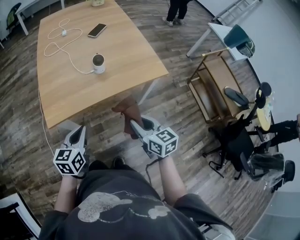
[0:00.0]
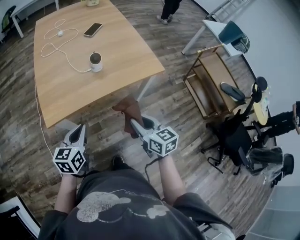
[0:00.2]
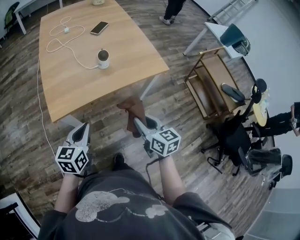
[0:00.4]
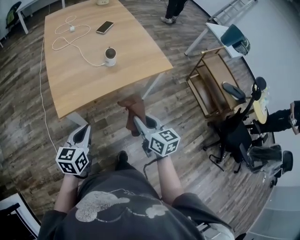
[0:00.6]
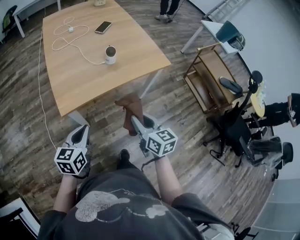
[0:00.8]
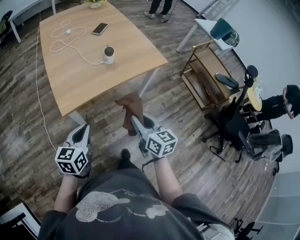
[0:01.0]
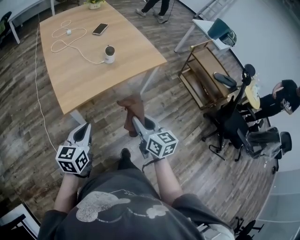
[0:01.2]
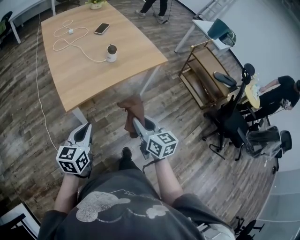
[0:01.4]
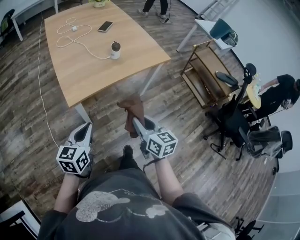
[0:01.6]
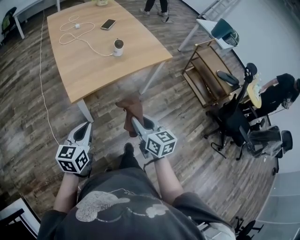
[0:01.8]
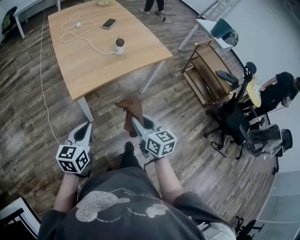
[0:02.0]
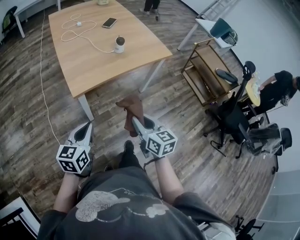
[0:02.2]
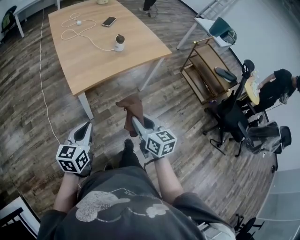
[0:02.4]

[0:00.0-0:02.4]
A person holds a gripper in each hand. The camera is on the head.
0:00.0 to 0:01.2: The grippers both shift backward and to the left by about 15 cm.
0:01.2 to 0:02.4: The left gripper shifts about 10 cm backward; the right gripper moves backward and to the left, some 10 cm.

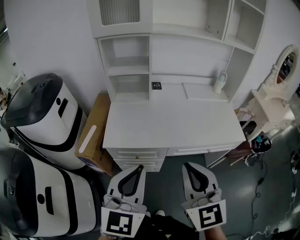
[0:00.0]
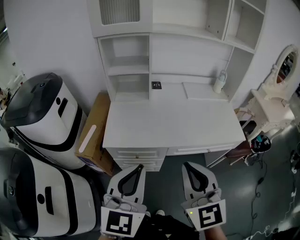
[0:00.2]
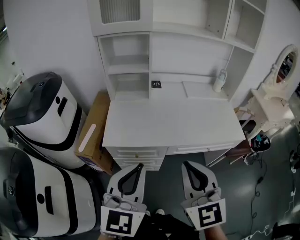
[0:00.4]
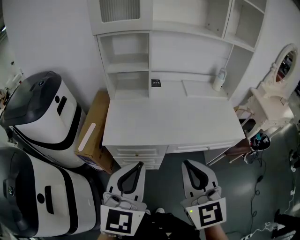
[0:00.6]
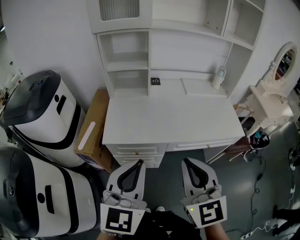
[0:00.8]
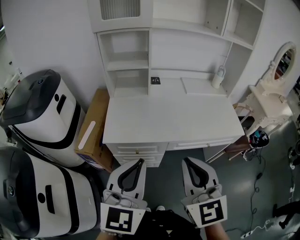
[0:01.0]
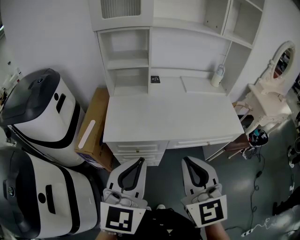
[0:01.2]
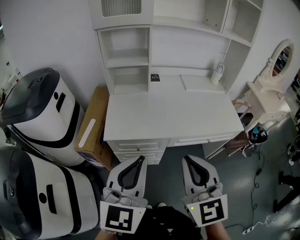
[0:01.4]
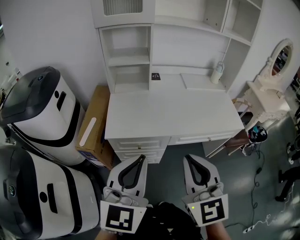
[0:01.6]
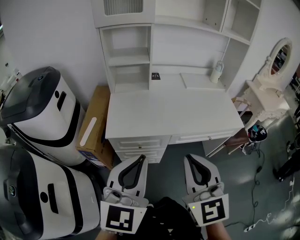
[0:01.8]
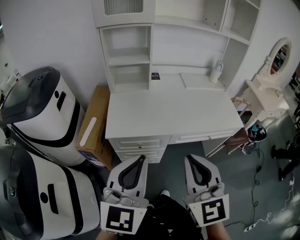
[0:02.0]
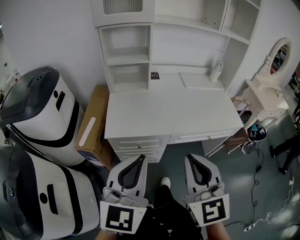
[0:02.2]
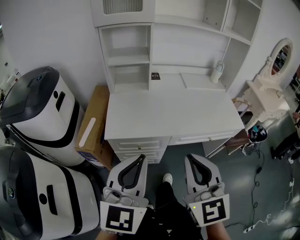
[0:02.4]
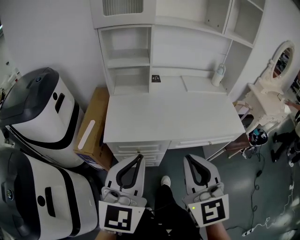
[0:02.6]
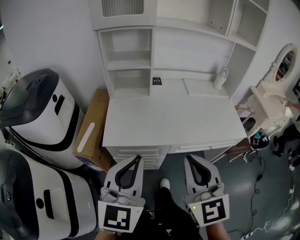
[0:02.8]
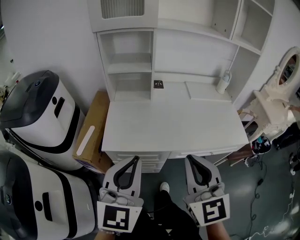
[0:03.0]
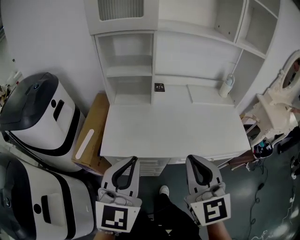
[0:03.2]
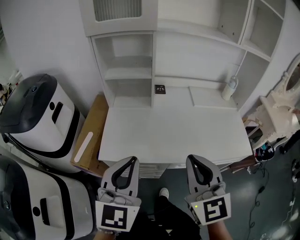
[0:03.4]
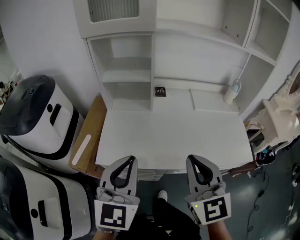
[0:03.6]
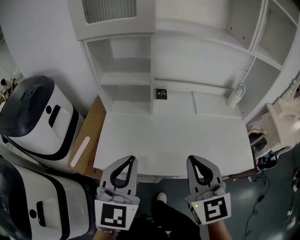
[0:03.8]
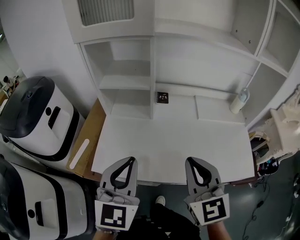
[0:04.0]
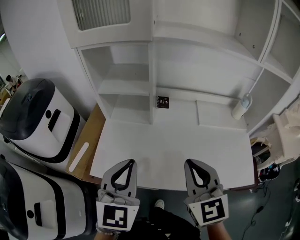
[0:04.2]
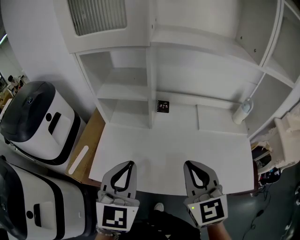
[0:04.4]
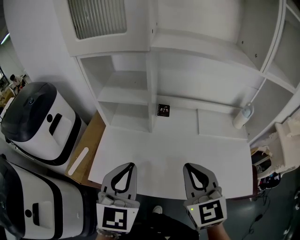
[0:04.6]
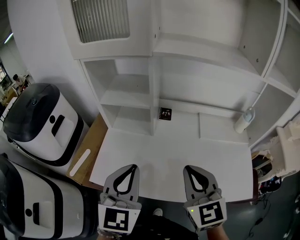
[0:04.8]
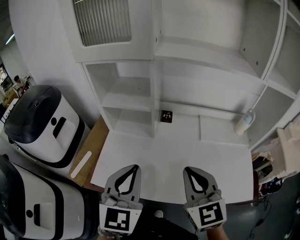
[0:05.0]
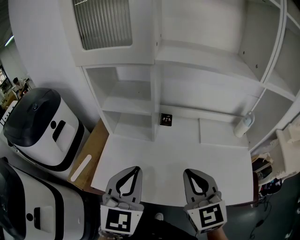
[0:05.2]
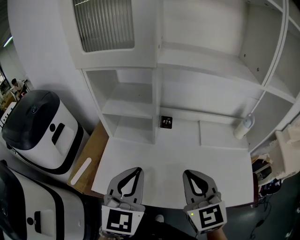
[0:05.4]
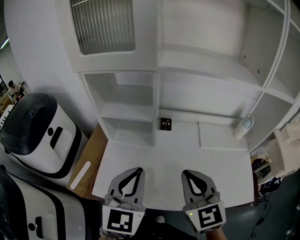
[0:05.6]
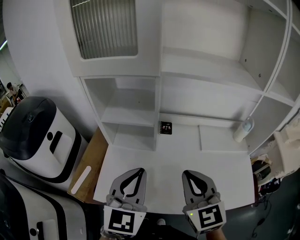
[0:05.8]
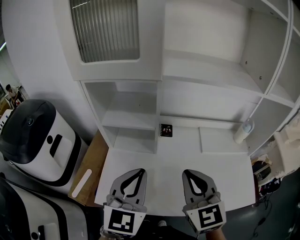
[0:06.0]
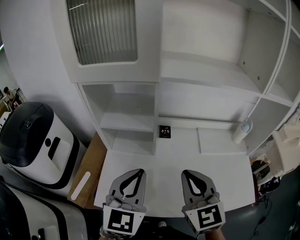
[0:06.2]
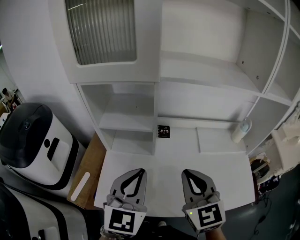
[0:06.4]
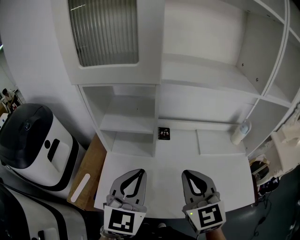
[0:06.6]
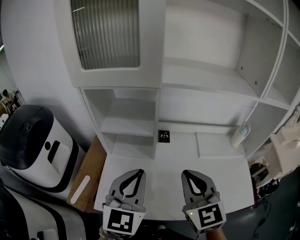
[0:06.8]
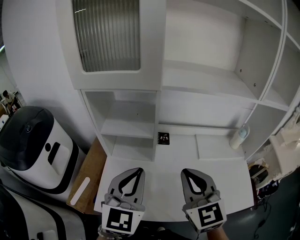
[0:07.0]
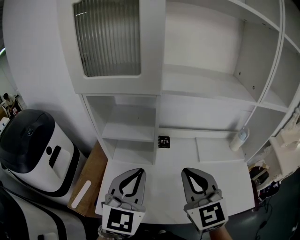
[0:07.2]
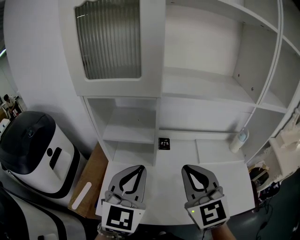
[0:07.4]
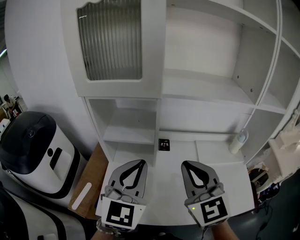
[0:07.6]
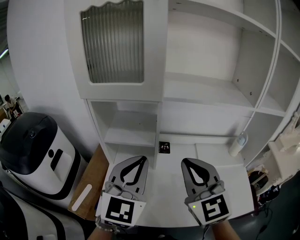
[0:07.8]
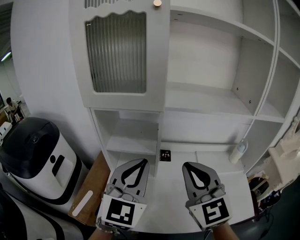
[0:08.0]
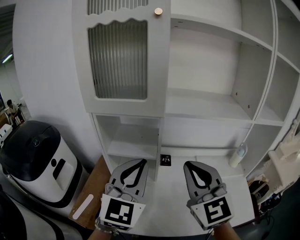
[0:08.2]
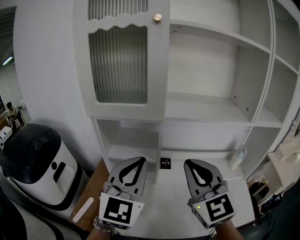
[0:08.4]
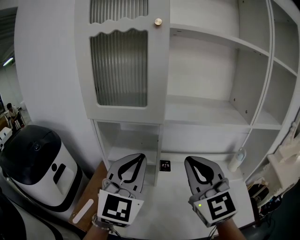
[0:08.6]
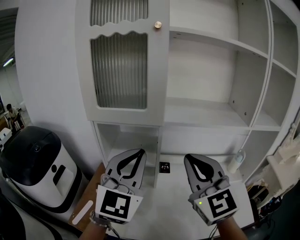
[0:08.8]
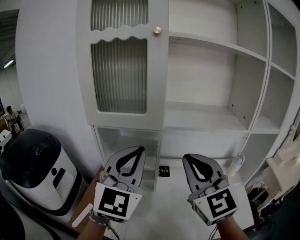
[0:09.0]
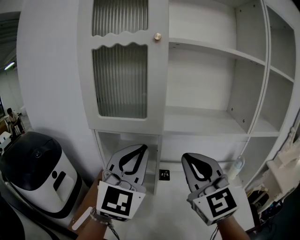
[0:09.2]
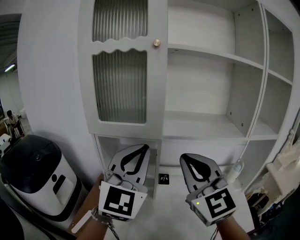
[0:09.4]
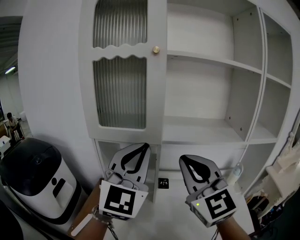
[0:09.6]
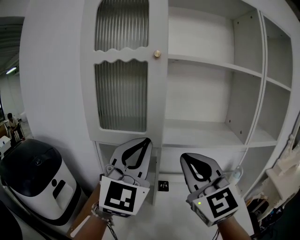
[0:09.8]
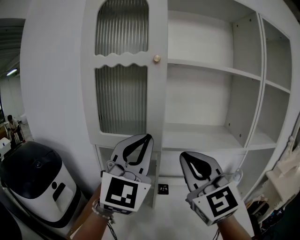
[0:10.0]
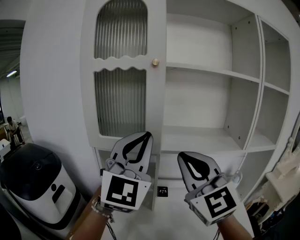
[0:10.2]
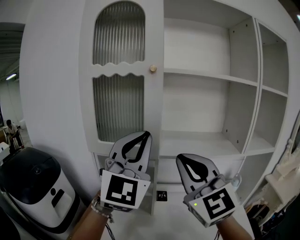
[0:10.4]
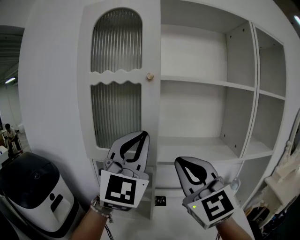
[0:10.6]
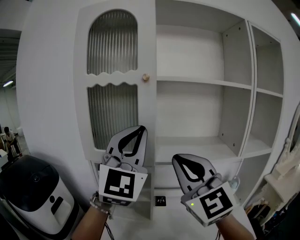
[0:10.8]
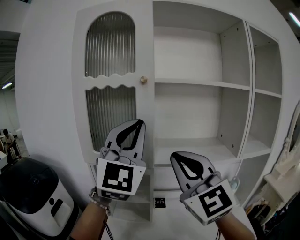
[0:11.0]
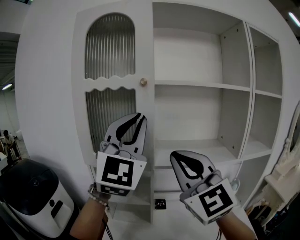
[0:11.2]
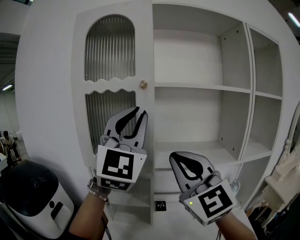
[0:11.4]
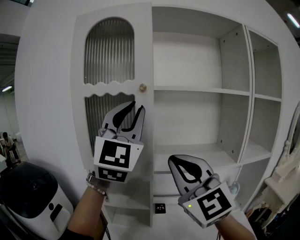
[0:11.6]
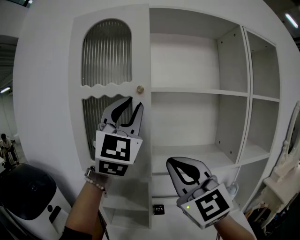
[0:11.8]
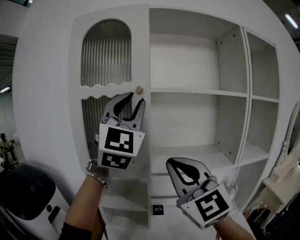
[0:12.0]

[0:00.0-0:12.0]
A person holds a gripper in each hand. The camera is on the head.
0:00.0 to 0:01.6: The grippers move only a little.
0:01.6 to 0:03.0: The grippers both shift forward by about 10 cm.
0:03.0 to 0:04.4: The left gripper travels forward by approximately 20 cm. The right gripper is displaced forward and to the right by approximately 25 cm.
0:04.4 to 0:06.0: Both grippers move forward, about 5 cm.
0:06.0 to 0:07.6: The grippers both shift upward by roughly 5 cm.
0:07.6 to 0:09.0: The two grippers go about 10 cm upward.
0:09.0 to 0:10.4: Both grippers move upward, some 10 cm.
0:10.4 to 0:12.0: The left gripper travels upward and forward by approximately 15 cm, and opens.

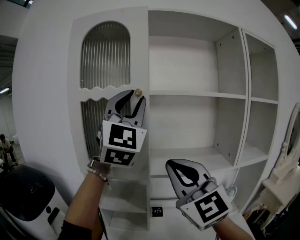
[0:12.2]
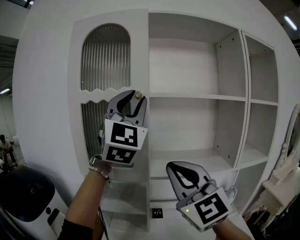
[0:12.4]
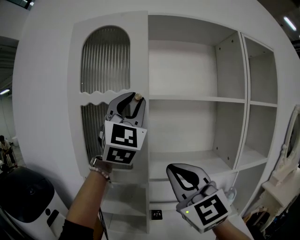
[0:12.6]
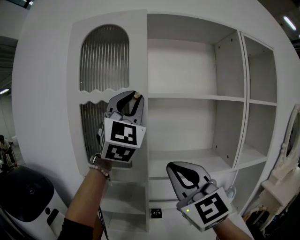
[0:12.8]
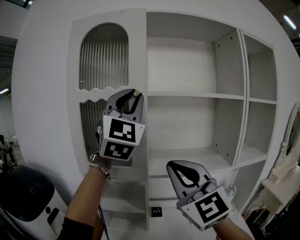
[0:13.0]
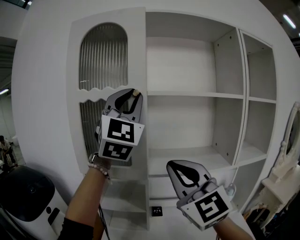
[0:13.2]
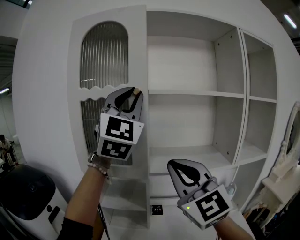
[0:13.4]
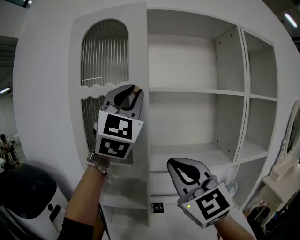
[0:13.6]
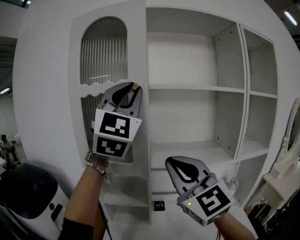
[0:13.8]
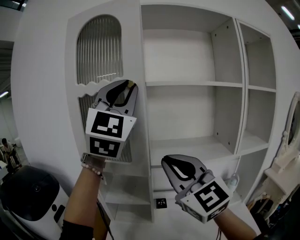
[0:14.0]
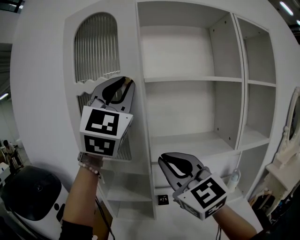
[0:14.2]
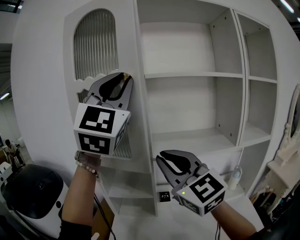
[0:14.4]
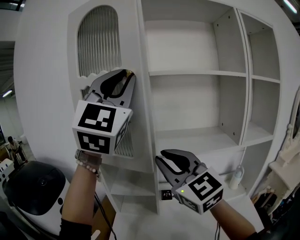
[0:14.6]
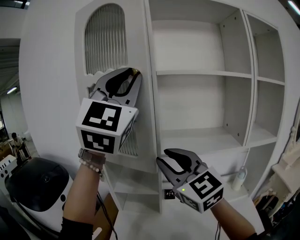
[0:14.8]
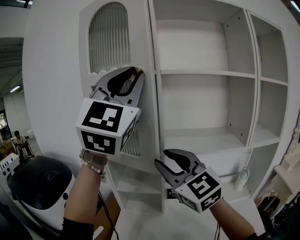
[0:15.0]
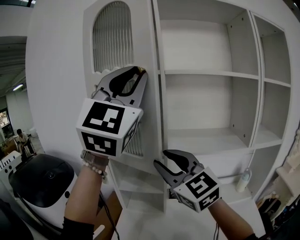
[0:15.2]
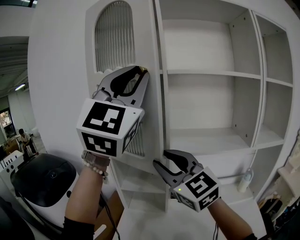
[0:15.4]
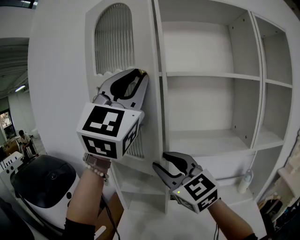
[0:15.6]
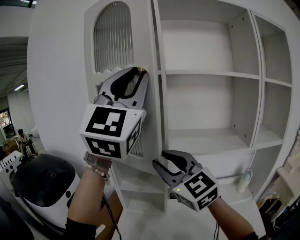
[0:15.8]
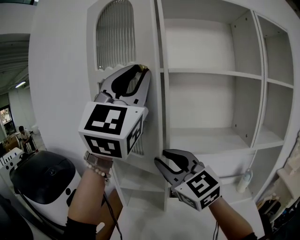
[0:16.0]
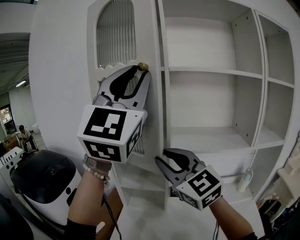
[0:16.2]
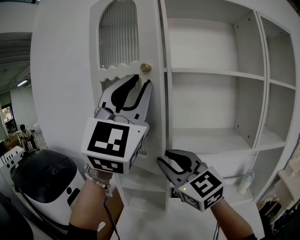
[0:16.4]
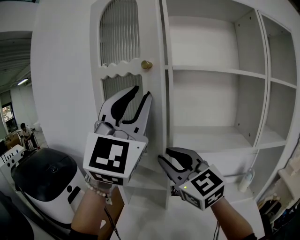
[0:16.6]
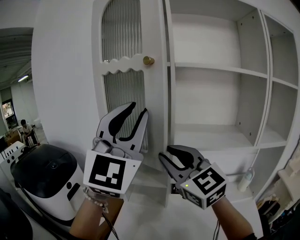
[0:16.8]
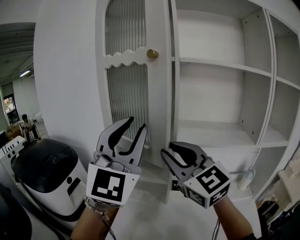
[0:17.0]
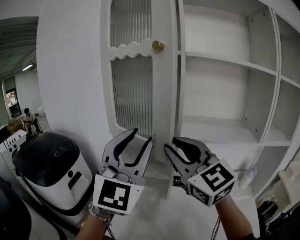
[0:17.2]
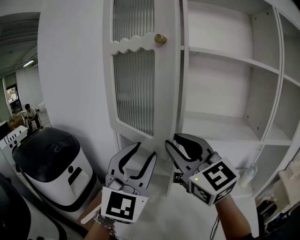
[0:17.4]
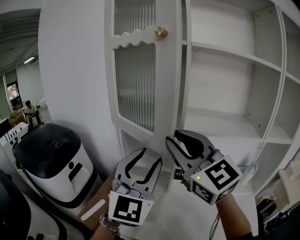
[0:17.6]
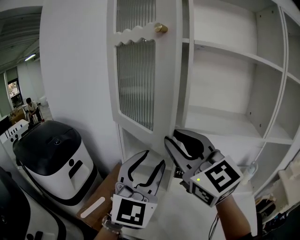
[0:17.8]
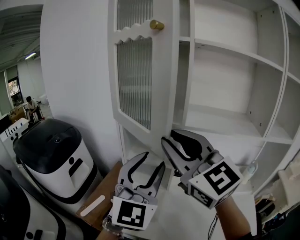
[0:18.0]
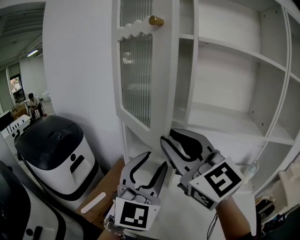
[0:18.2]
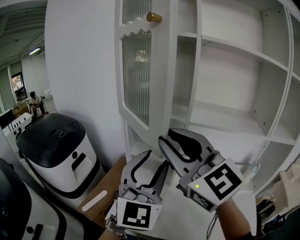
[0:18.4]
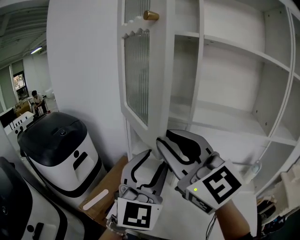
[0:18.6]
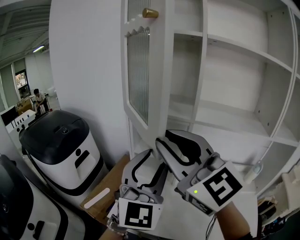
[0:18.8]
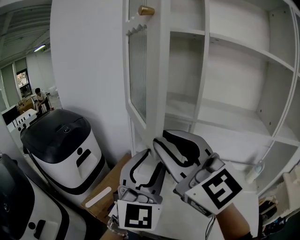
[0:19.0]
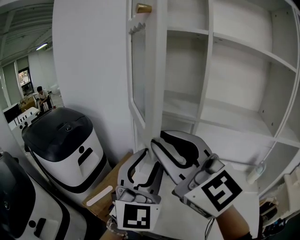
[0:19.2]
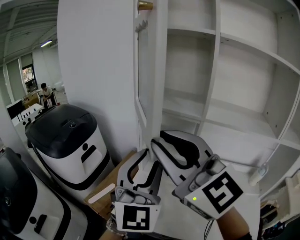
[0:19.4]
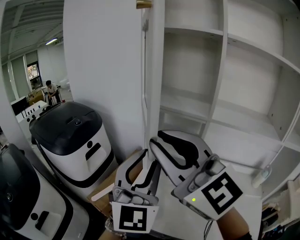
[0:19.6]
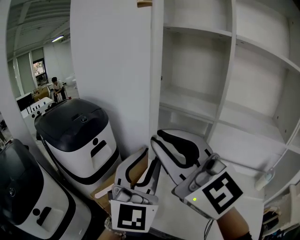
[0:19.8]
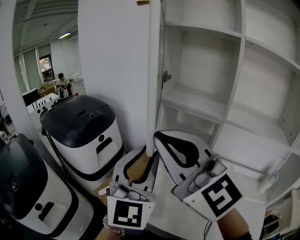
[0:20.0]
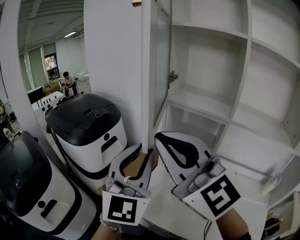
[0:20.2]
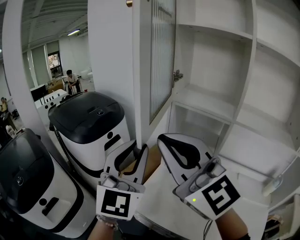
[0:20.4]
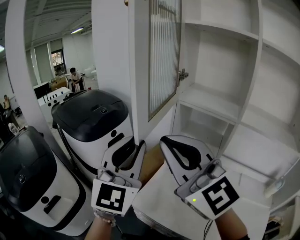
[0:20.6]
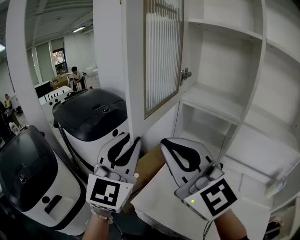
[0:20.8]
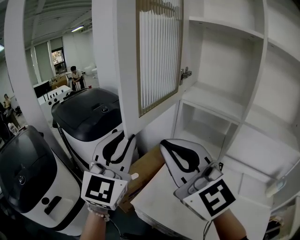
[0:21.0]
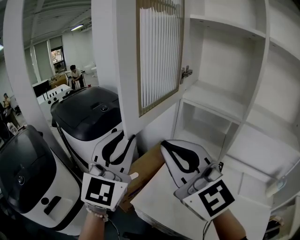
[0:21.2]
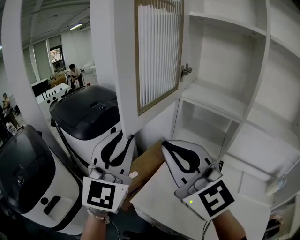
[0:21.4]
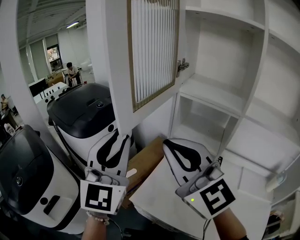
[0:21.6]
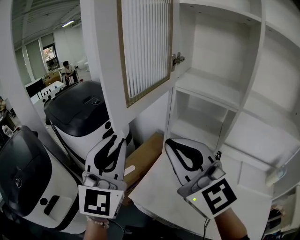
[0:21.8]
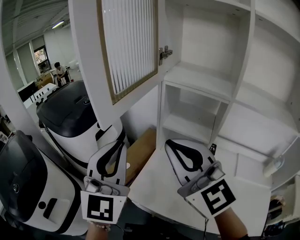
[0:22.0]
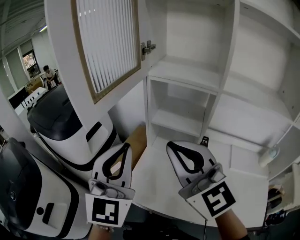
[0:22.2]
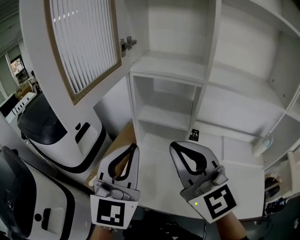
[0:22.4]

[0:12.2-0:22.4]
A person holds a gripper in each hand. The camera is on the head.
0:12.2 to 0:13.6: The grippers stay close to where they were, moving slightly.
0:13.6 to 0:15.2: The left gripper moves backward, roughly 10 cm; the right gripper is displaced to the left and downward by some 10 cm, and opens up.
0:15.2 to 0:16.6: The left gripper travels downward by roughly 5 cm.
0:16.6 to 0:18.0: The left gripper travels downward by some 25 cm, and turns by approximately 20 degrees; the right gripper shifts by roughly 5 cm.
0:18.0 to 0:19.4: Both grippers travel together to the left, roughly 5 cm.
0:19.4 to 0:21.0: The right gripper moves to the left, roughly 10 cm, while the left gripper shifts about 20 cm to the left and forward.
0:21.0 to 0:22.4: The right gripper shifts approximately 15 cm to the right and downward, and turns by some 20 degrees. The left gripper is displaced to the right, downward and backward by roughly 15 cm.
